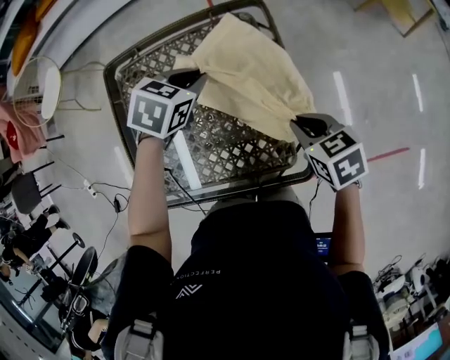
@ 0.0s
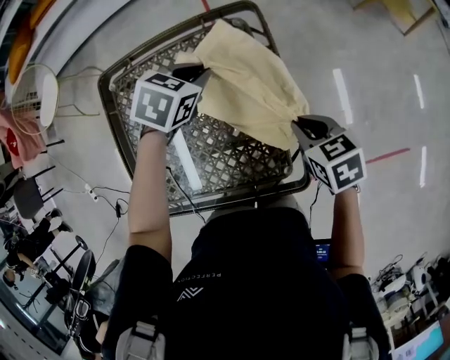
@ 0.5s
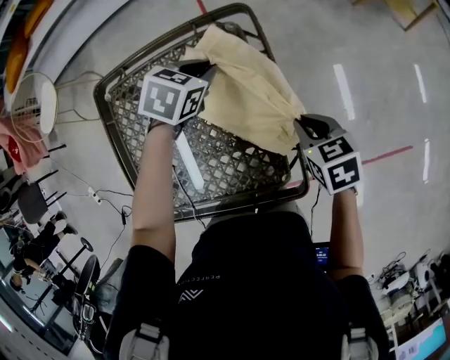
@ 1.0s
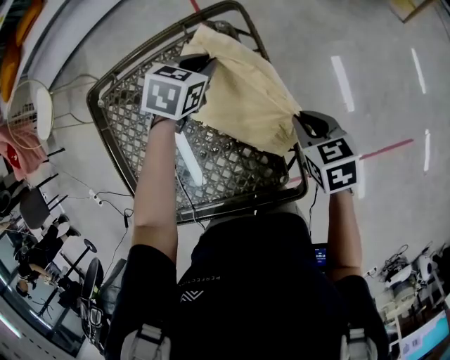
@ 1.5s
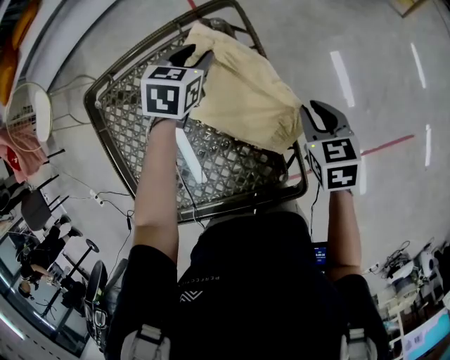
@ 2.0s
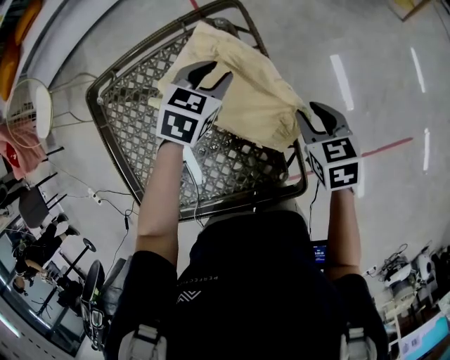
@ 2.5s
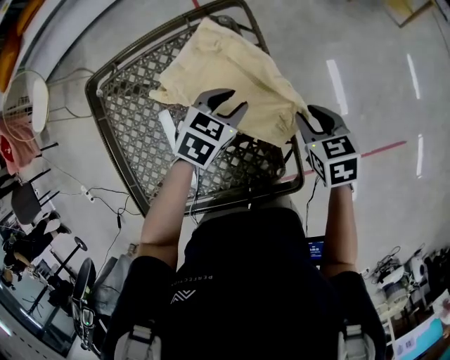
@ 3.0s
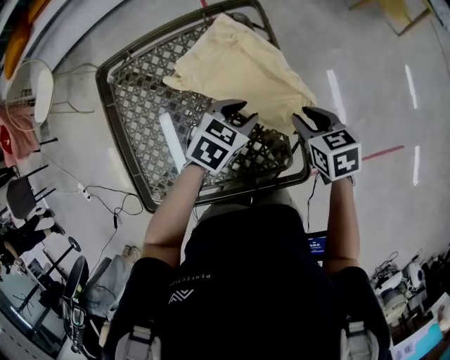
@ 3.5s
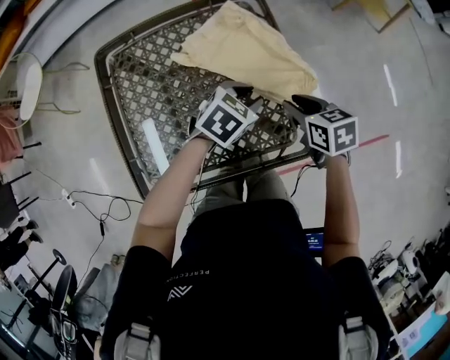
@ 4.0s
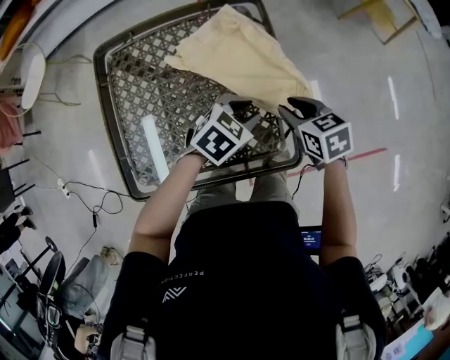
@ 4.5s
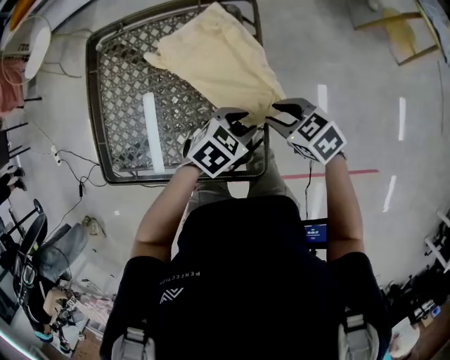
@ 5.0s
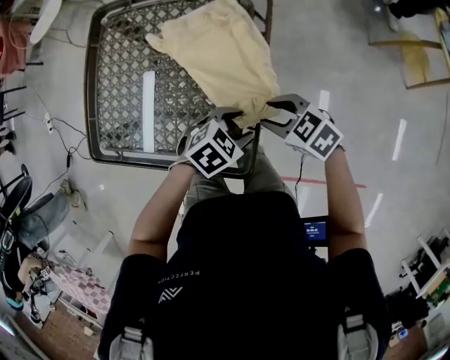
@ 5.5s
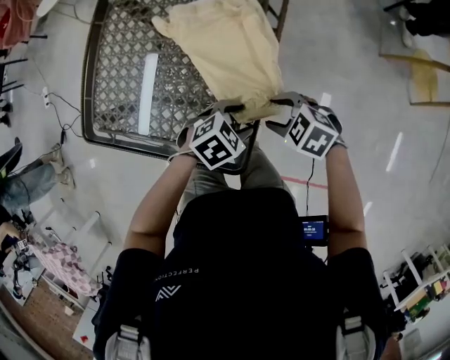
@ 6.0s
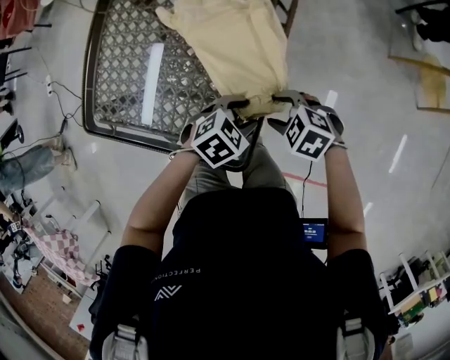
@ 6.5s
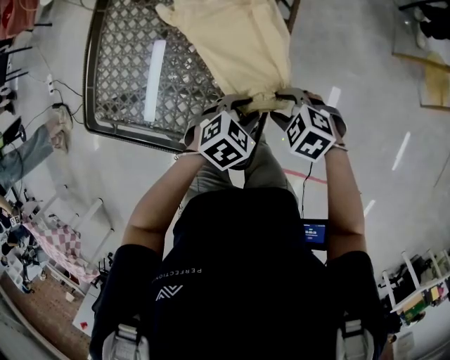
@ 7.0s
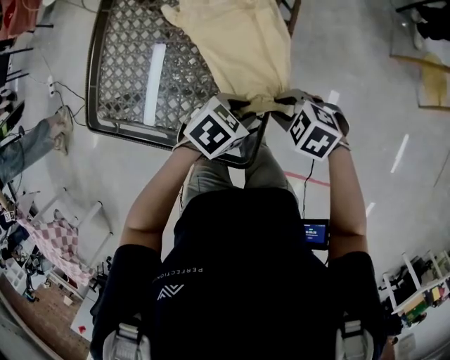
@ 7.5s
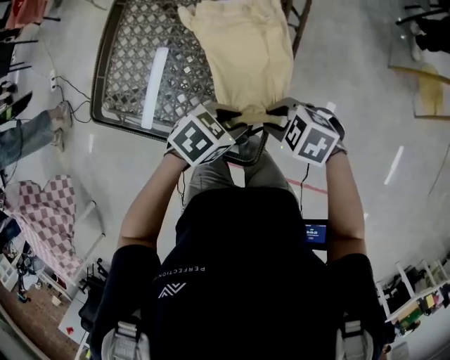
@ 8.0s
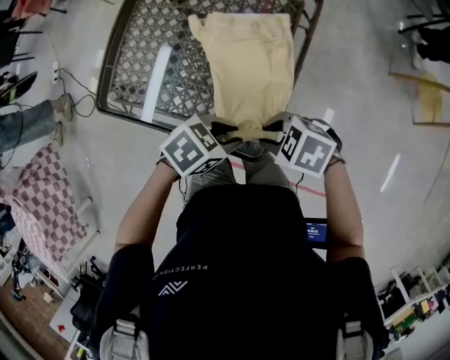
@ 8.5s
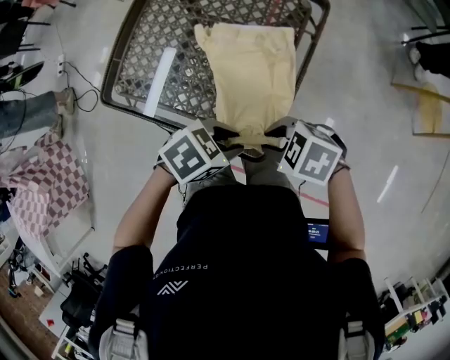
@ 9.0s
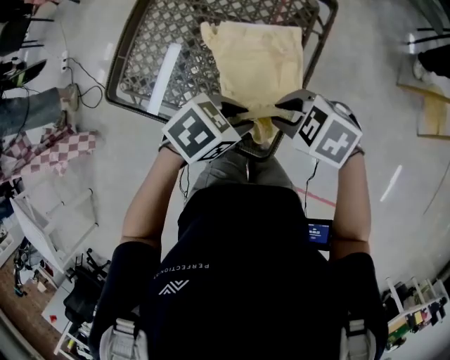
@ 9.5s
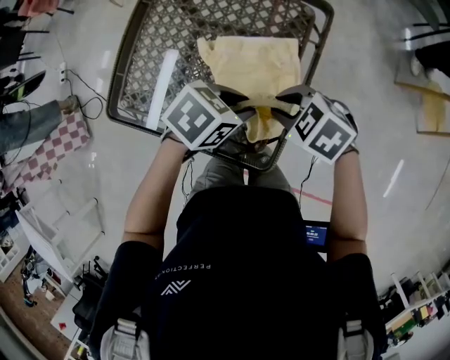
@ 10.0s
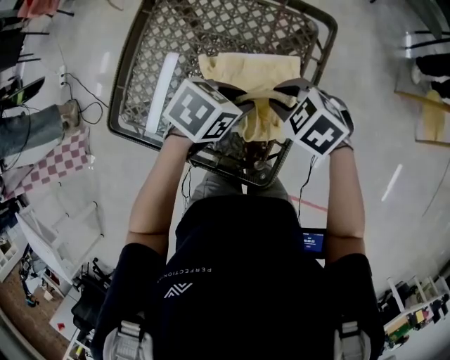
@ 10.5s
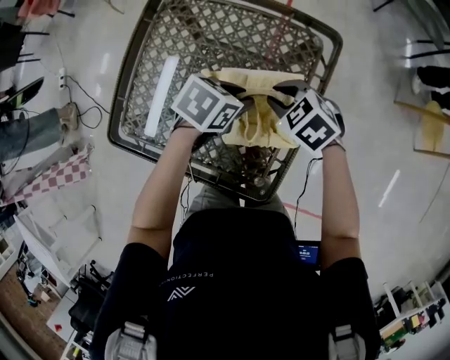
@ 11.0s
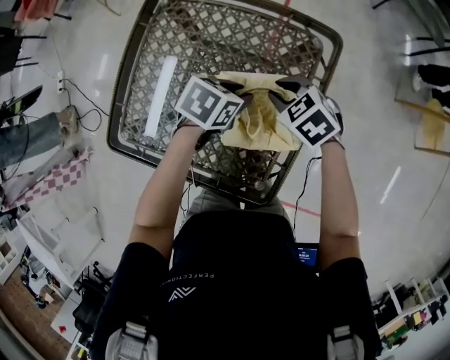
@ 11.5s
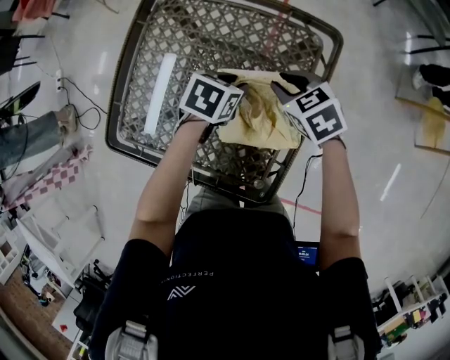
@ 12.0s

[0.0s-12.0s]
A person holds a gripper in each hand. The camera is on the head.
0.0s to 2.0s: The left gripper travels forward and downward by some 15 cm, and opens, while the right gripper heads forward, to the right and downward, covering some 10 cm, and swivels approximately 20 degrees.
2.0s to 4.0s: The right gripper goes about 15 cm backward and to the left; the left gripper moves backward, about 25 cm, and turns by about 20 degrees.
4.0s to 6.0s: The right gripper shifts by about 10 cm, and twists approximately 60 degrees counterclockwise, seen from behind; the left gripper changes place by about 15 cm, and opens its fingers.
6.0s to 8.0s: The left gripper heads upward, covering about 5 cm, and closes up. Meanwhile the right gripper moves roughly 5 cm, and closes its fingers.
8.0s to 10.0s: The left gripper ends up some 10 cm from where it was. Meanwhile the right gripper changes place by approximately 10 cm.
10.0s to 12.0s: The right gripper moves some 20 cm, and turns by approximately 20 degrees. The left gripper changes place by approximately 20 cm.

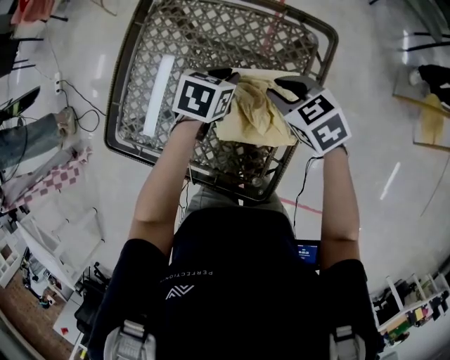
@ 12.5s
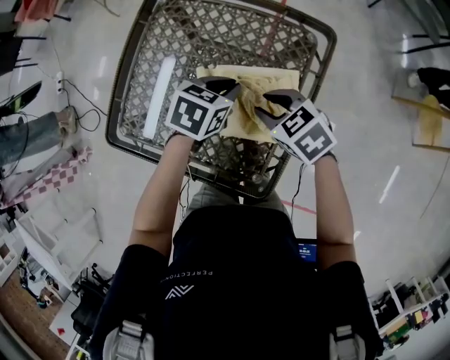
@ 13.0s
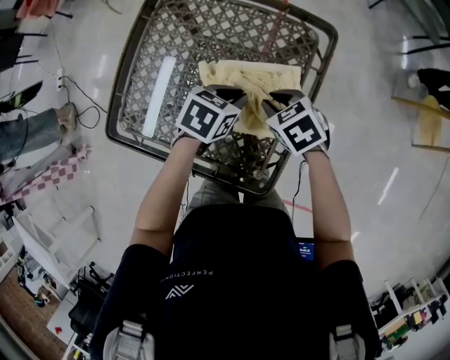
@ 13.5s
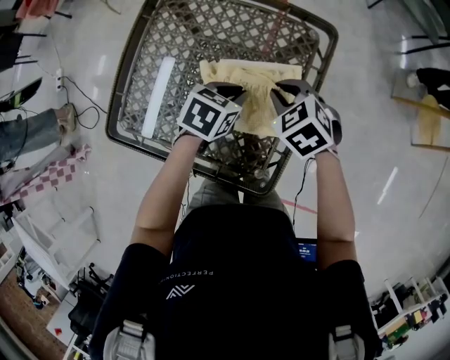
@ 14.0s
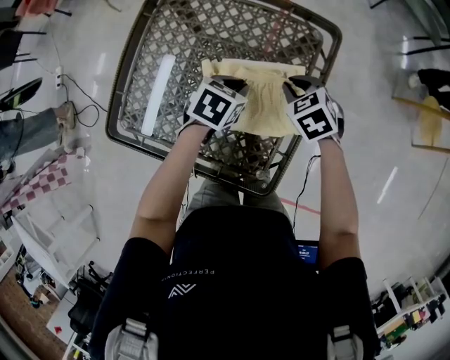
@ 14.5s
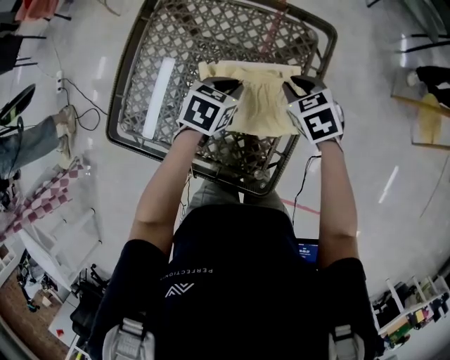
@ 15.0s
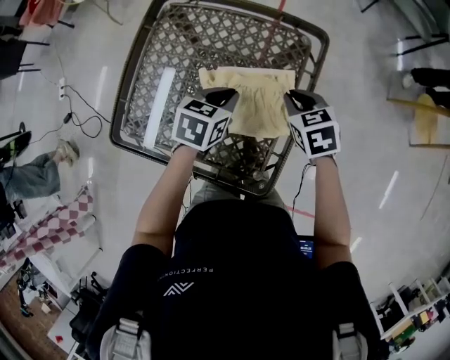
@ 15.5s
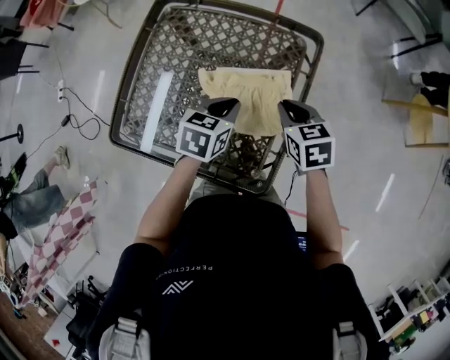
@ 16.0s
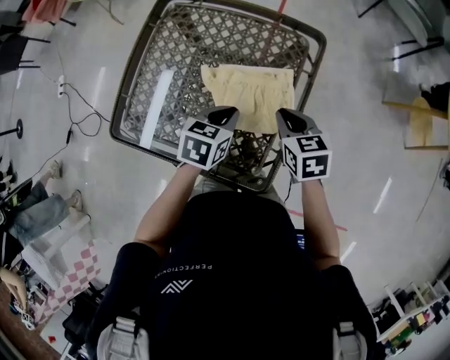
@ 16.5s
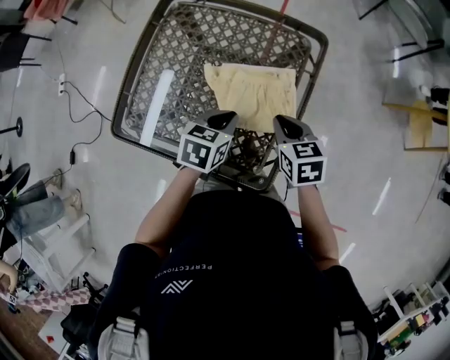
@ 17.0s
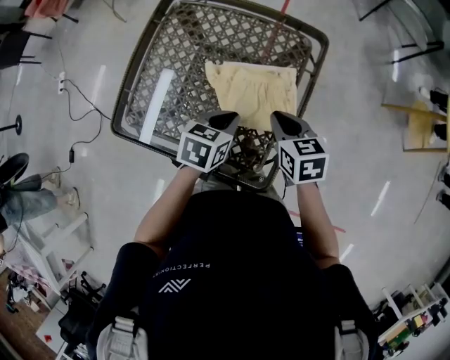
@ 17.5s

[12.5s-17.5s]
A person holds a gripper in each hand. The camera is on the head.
12.5s to 15.0s: The right gripper ends up some 5 cm from where it was.
15.0s to 17.5s: The right gripper is displaced backward and upward by some 10 cm, and rotates roughly 20 degrees. The left gripper moves backward, some 10 cm.

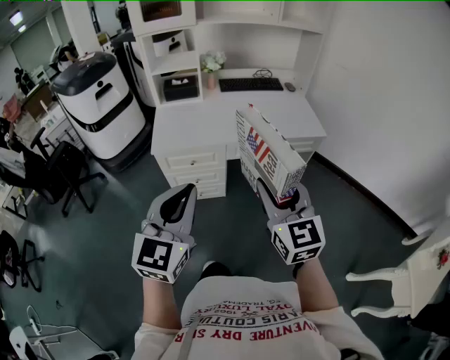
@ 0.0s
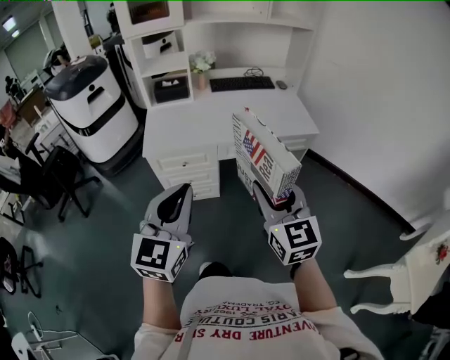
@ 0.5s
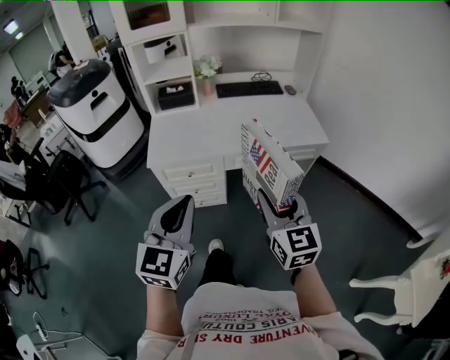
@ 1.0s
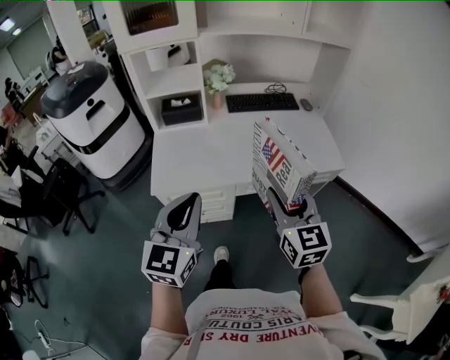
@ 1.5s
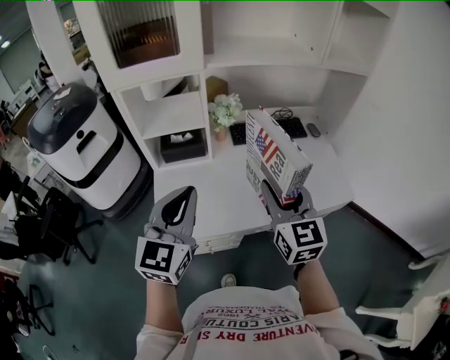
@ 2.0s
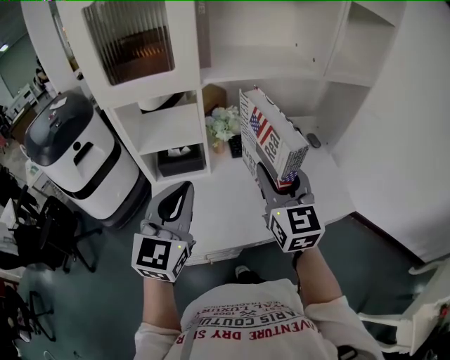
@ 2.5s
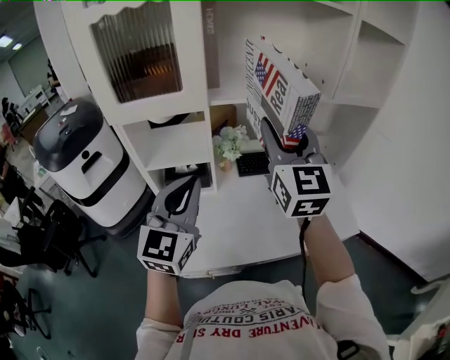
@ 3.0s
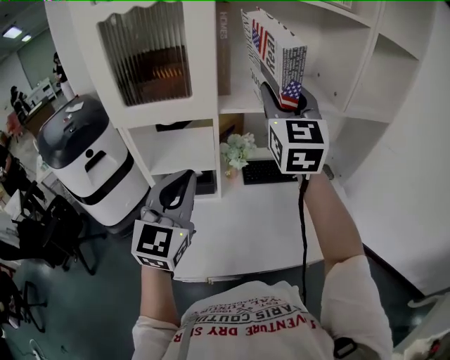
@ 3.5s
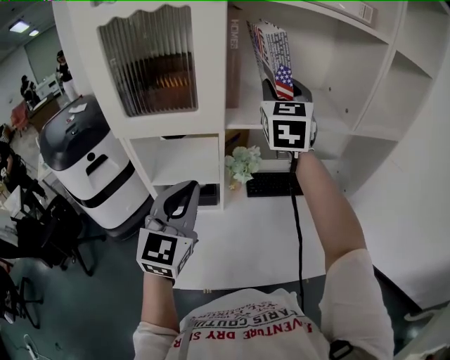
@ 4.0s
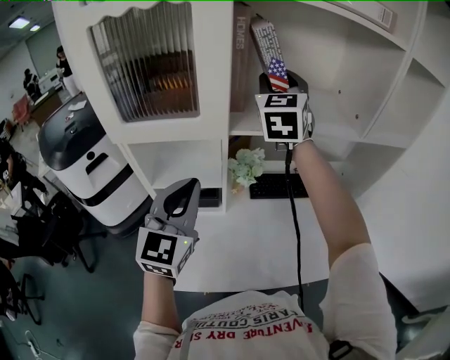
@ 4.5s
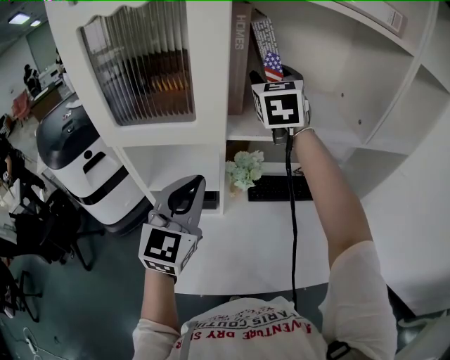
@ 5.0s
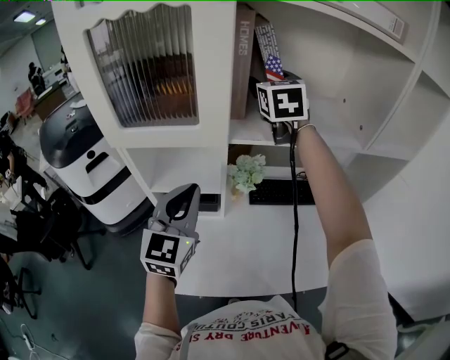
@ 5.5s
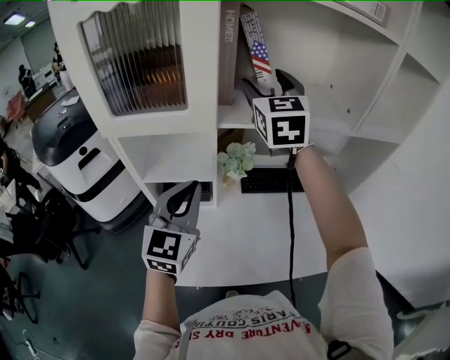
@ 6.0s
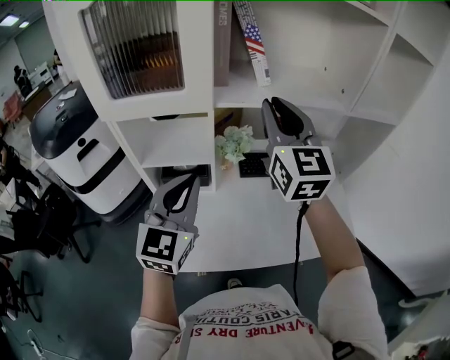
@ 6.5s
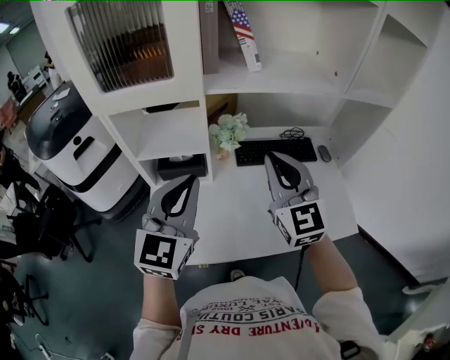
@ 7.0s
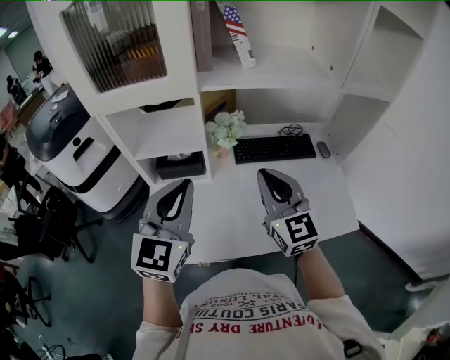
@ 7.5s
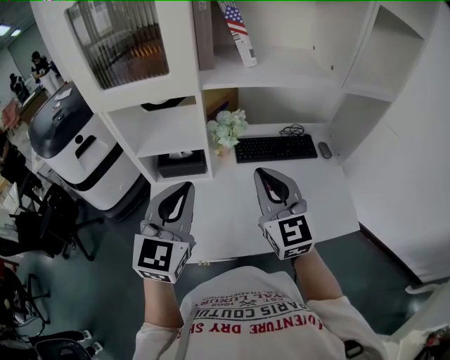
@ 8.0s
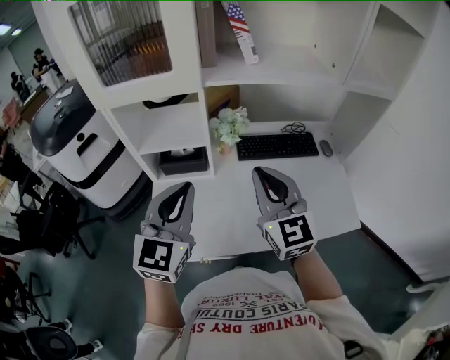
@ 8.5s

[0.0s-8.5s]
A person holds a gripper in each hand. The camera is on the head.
0.0s to 2.0s: The pair of grippers is taken forward, roughly 40 cm.
2.0s to 4.0s: The right gripper goes roughly 40 cm forward and upward. Meanwhile the left gripper travels forward by roughly 20 cm.
4.0s to 6.5s: The right gripper goes about 10 cm backward and downward, and opens, then closes again.
6.5s to 8.5s: The left gripper shifts roughly 5 cm backward. Meanwhile the right gripper shifts roughly 20 cm downward and backward.

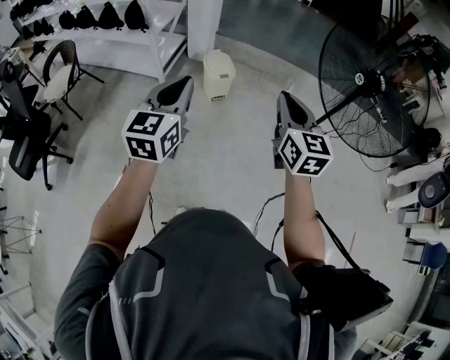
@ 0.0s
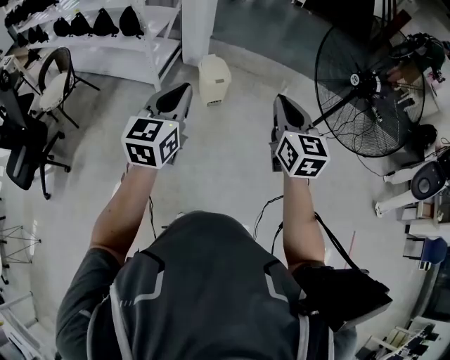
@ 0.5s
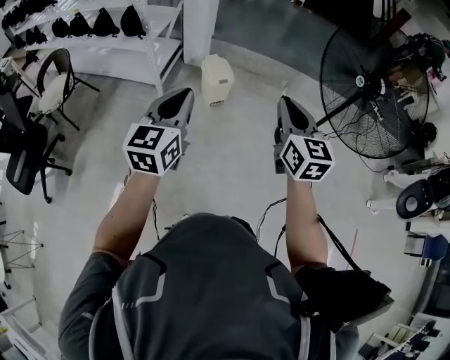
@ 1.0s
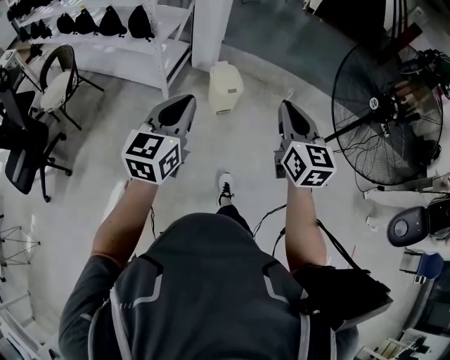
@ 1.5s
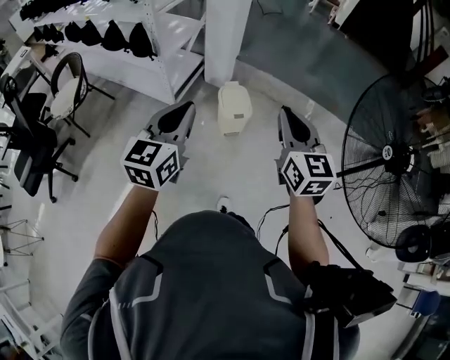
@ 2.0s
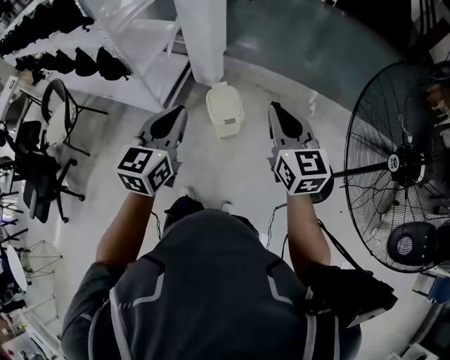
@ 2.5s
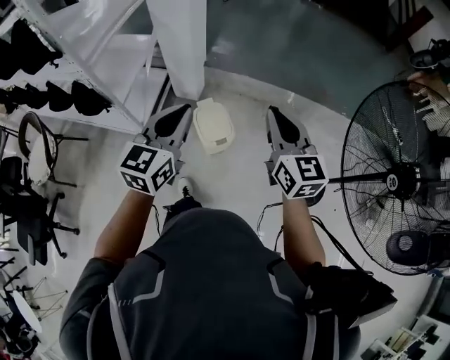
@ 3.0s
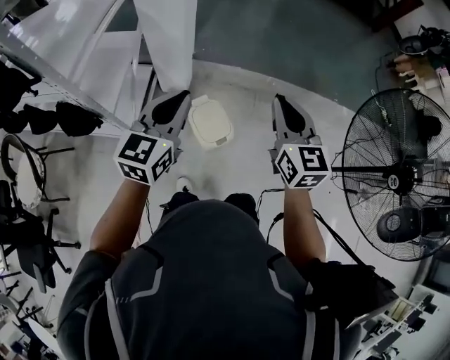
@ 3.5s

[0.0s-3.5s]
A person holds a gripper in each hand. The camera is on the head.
0.0s to 2.0s: The two grippers go approximately 25 cm forward.
2.0s to 3.5s: Both grippers travel together forward, approximately 40 cm. The left gripper turns by some 20 degrees.
